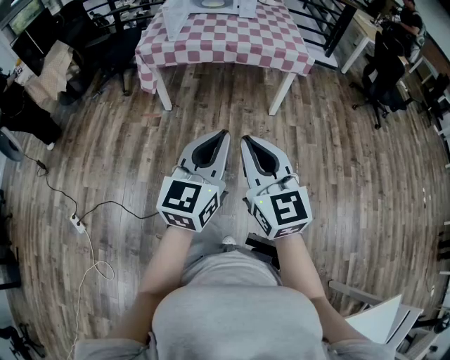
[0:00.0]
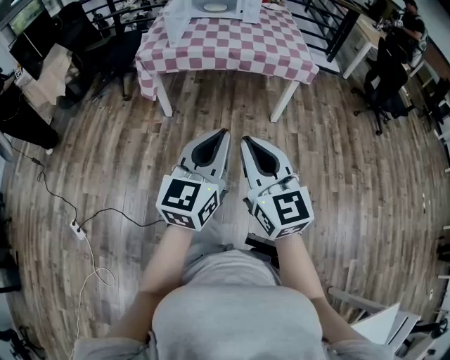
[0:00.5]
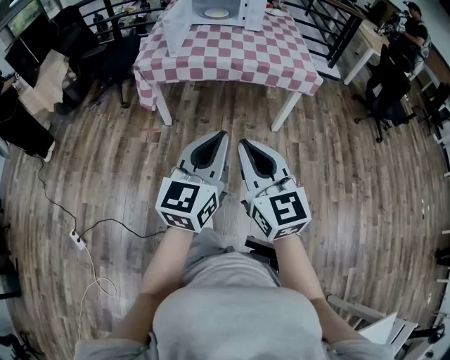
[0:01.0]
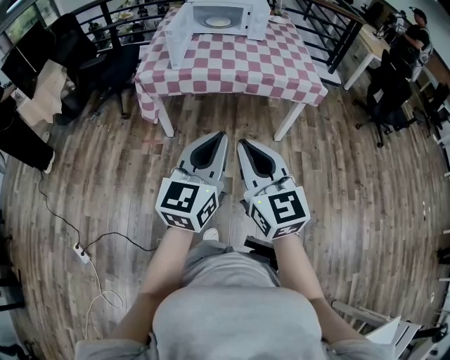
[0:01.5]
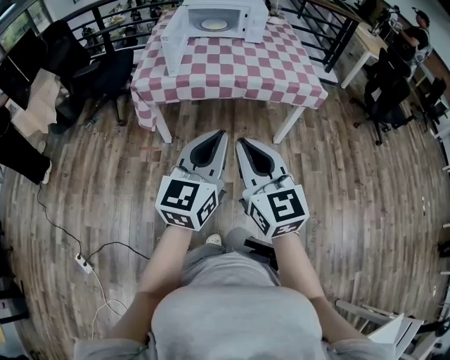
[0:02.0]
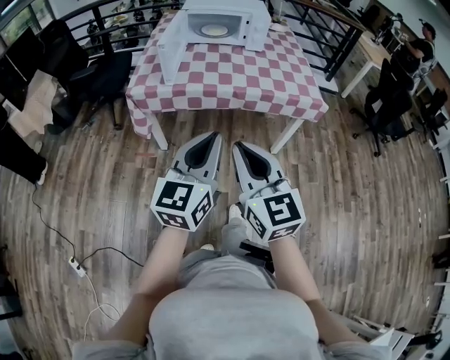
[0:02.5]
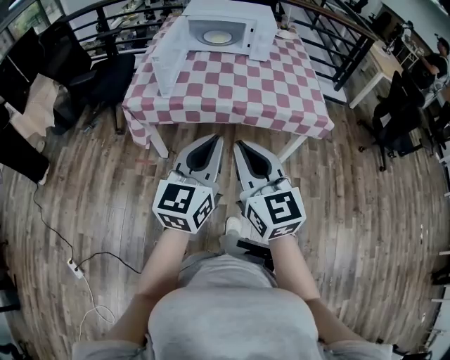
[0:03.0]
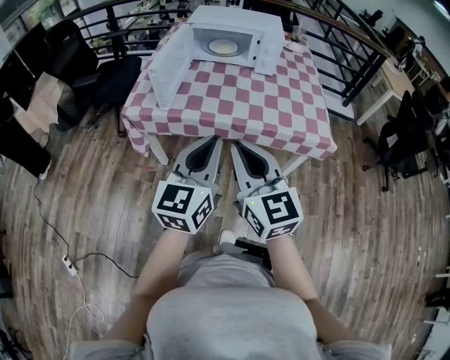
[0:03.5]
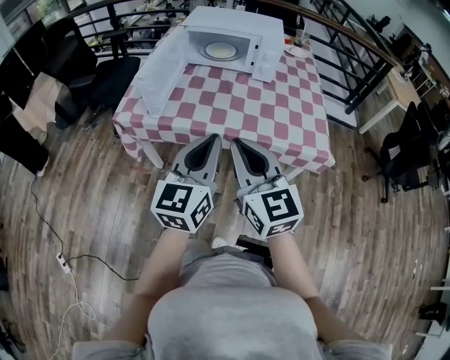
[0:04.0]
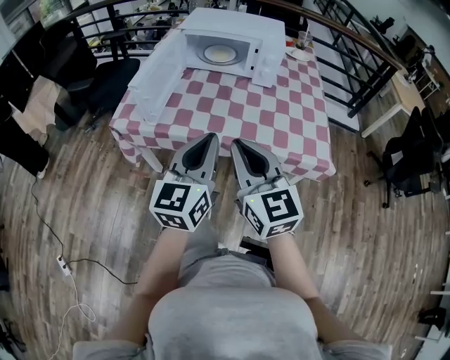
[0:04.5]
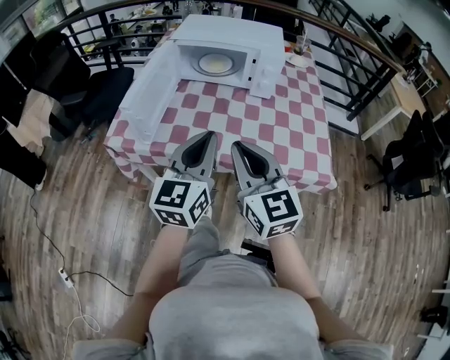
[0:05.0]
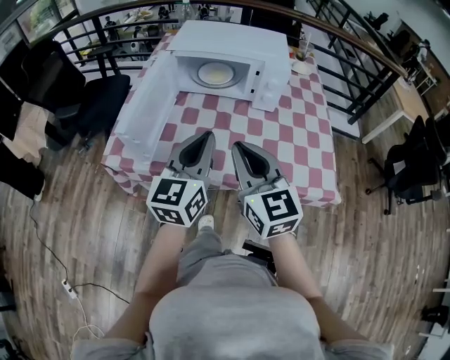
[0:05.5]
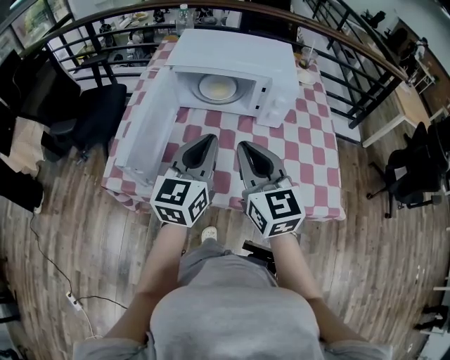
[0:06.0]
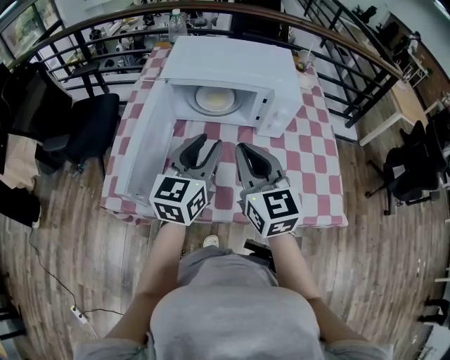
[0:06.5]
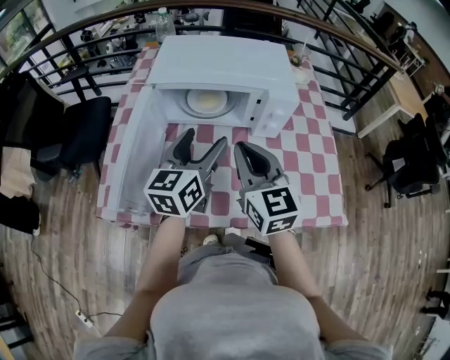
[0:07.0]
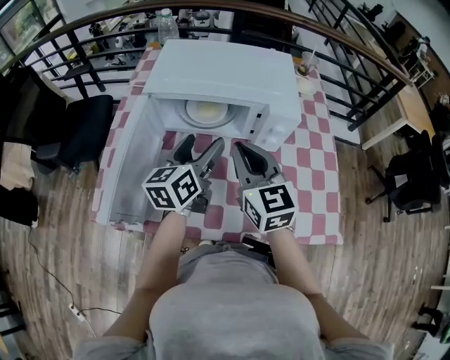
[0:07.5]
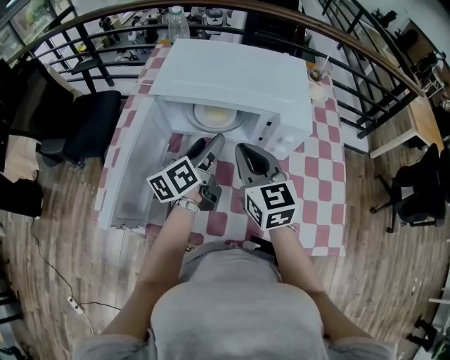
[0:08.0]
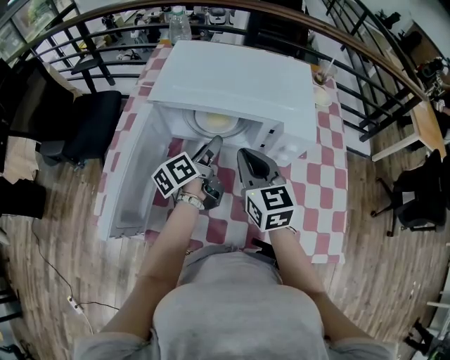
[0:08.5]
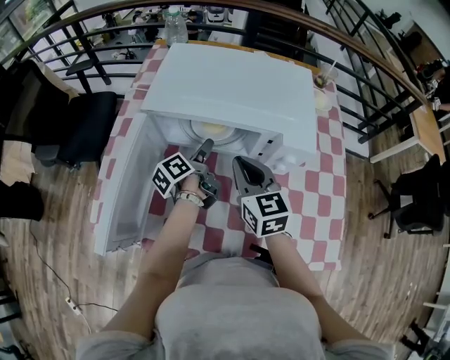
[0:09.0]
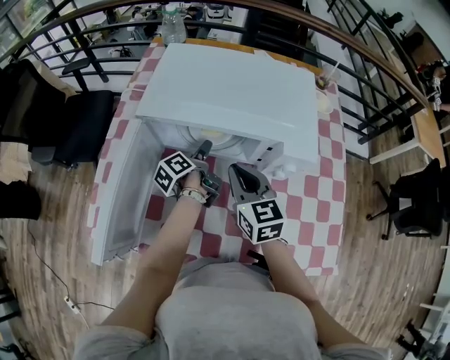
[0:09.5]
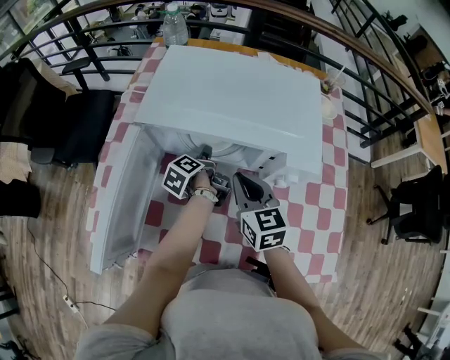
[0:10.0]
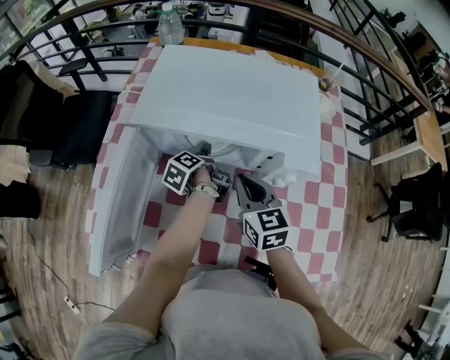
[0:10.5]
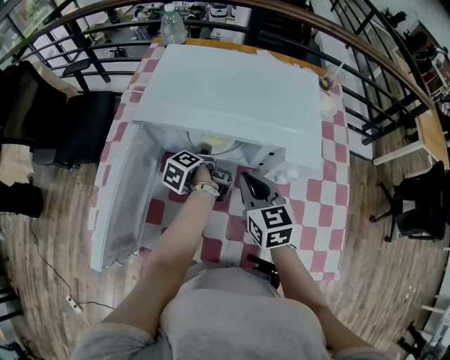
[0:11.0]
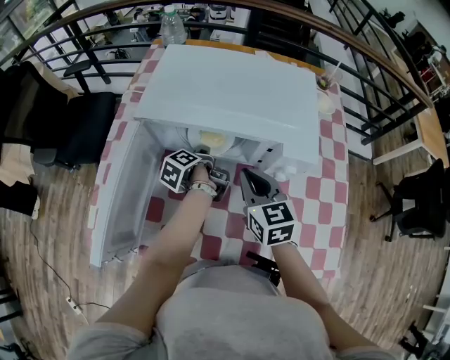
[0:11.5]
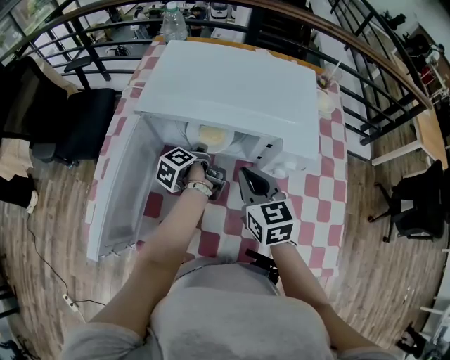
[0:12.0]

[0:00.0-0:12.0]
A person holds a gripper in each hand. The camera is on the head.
0:00.0 to 0:02.0: Both grippers move forward, some 25 cm.
0:02.0 to 0:04.0: Both grippers travel together forward, approximately 30 cm.
0:04.0 to 0:06.0: The grippers both shift forward by some 30 cm.
0:06.0 to 0:08.0: The right gripper moves forward, some 20 cm; the left gripper heads forward and downward, covering approximately 20 cm, twists some 40 degrees counterclockwise, seen from behind, and opens its fingers.
0:08.0 to 0:10.0: The right gripper goes some 10 cm downward and forward. Meanwhile the left gripper moves downward and forward, about 20 cm, and turns by some 50 degrees.
0:10.0 to 0:12.0: The left gripper closes up.

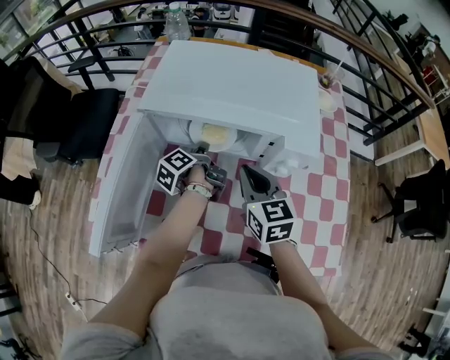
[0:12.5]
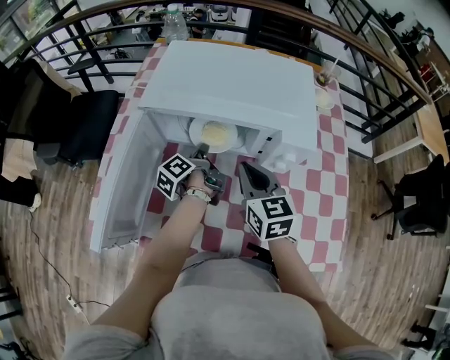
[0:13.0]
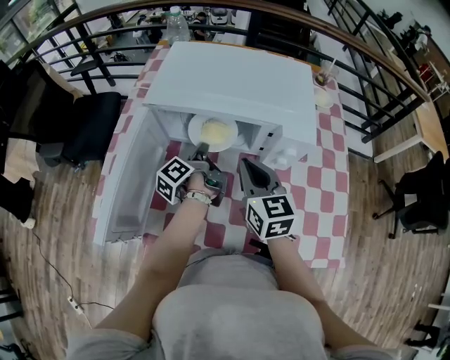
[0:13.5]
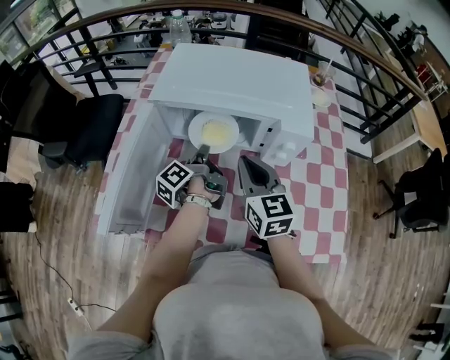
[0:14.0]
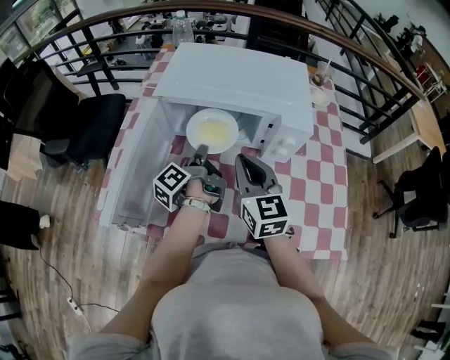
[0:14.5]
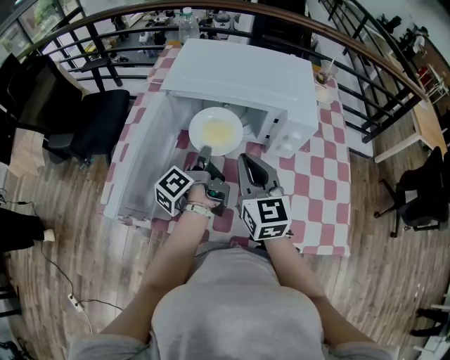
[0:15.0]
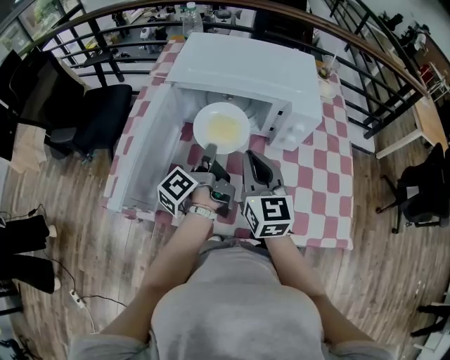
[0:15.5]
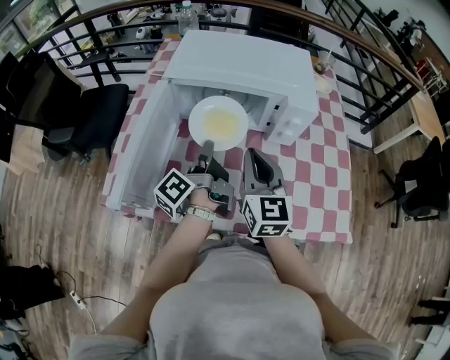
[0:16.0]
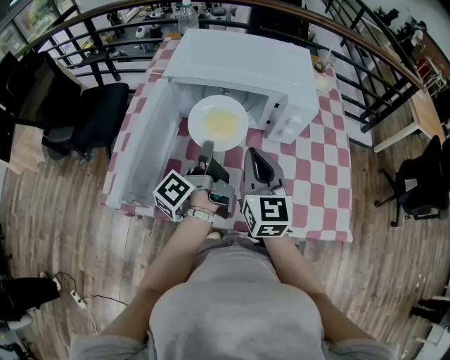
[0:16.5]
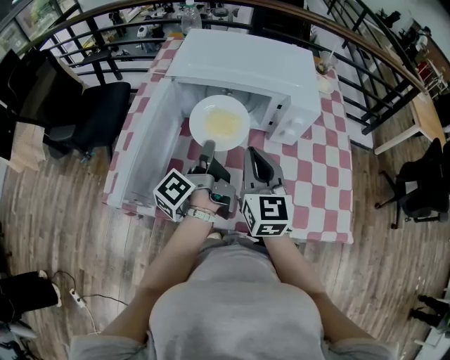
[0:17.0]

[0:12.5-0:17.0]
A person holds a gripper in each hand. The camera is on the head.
0:12.5 to 0:14.5: The right gripper moves upward and backward, some 5 cm. Meanwhile the left gripper heads backward and upward, covering roughly 10 cm.
0:14.5 to 0:17.0: The right gripper travels backward by roughly 5 cm, while the left gripper is displaced backward and upward by roughly 10 cm.

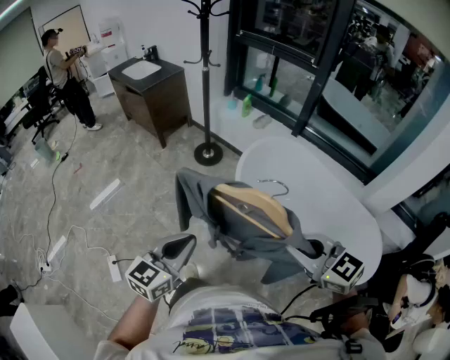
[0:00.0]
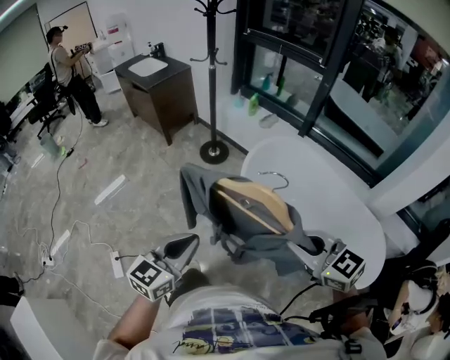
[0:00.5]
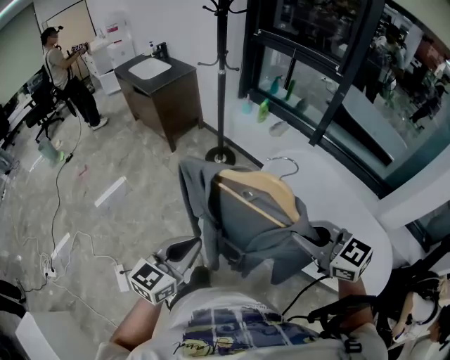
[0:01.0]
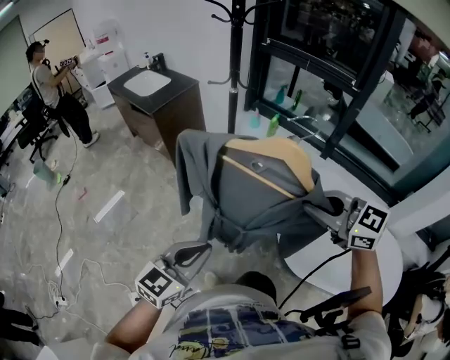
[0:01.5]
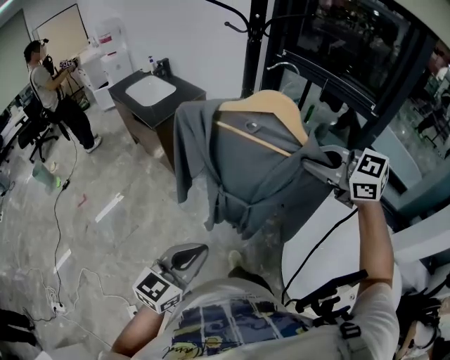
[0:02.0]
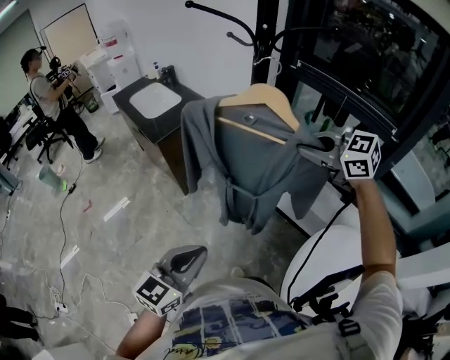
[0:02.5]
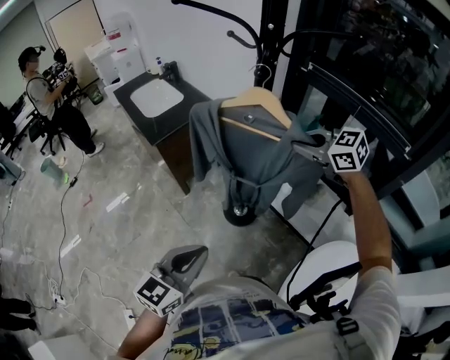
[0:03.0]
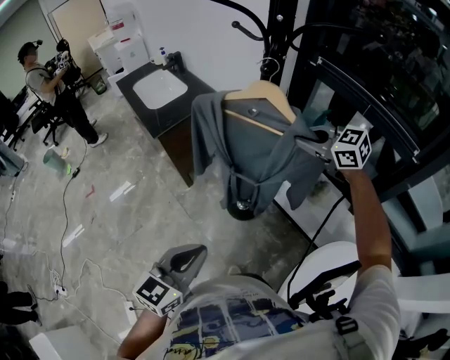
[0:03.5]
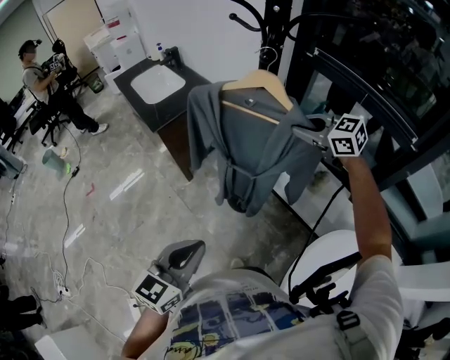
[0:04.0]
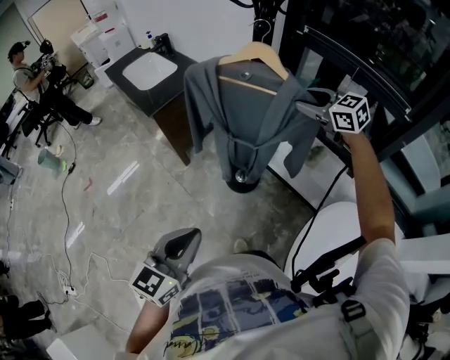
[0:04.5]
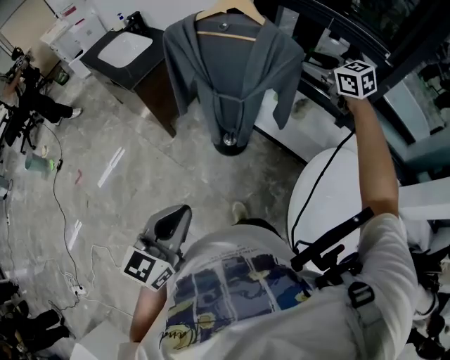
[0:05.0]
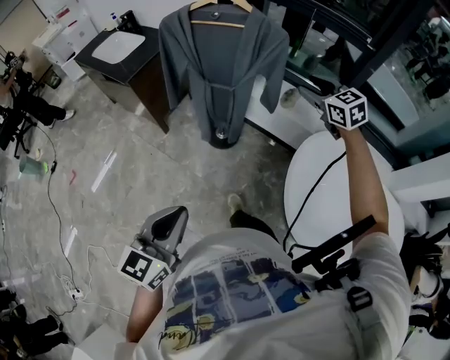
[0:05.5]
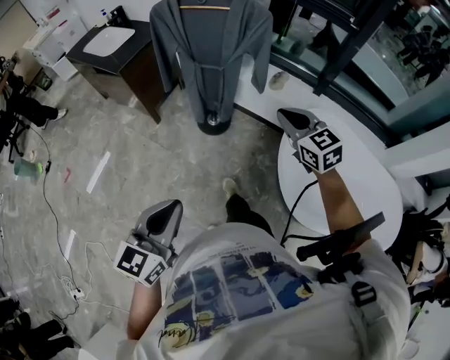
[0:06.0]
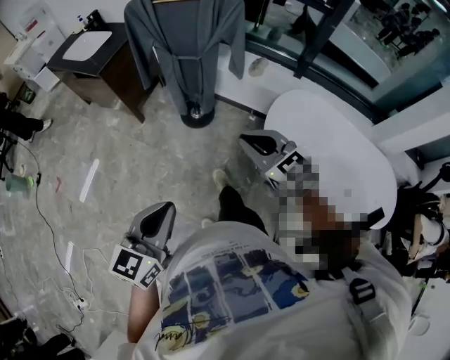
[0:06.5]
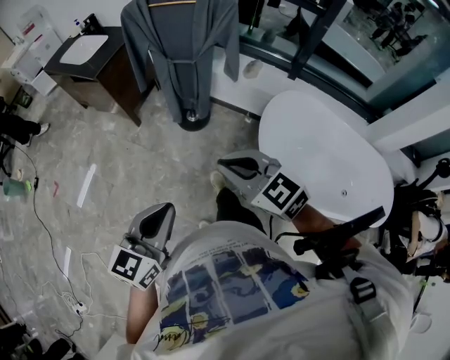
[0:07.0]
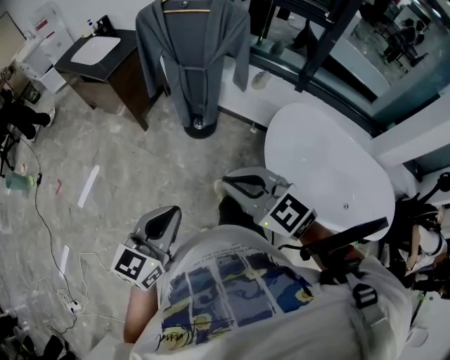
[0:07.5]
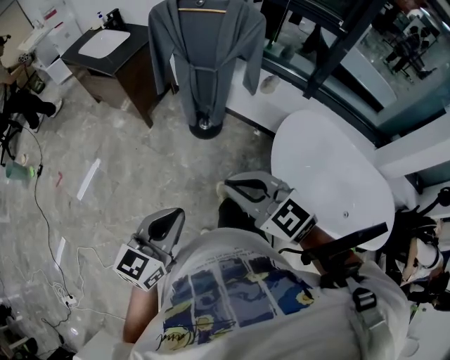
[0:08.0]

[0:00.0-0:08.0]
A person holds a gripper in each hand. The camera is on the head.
0:00.0 to 0:02.0: Both grippers are carried forward, about 50 cm.
0:02.0 to 0:04.0: The left gripper shifts roughly 20 cm forward; the right gripper travels forward by approximately 35 cm.
0:04.0 to 0:06.0: The right gripper shifts by about 40 cm, rotates about 40 degrees, and opens and closes again; the left gripper ends up about 25 cm from where it was.
0:06.0 to 0:08.0: The right gripper heads backward and to the left, covering about 25 cm, and rotates approximately 20 degrees.

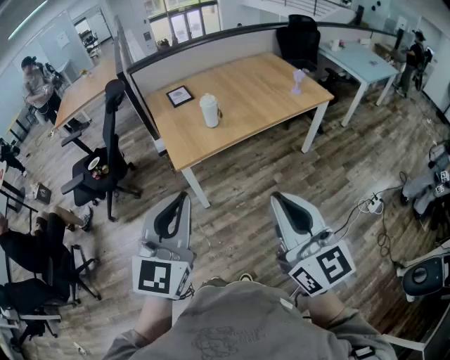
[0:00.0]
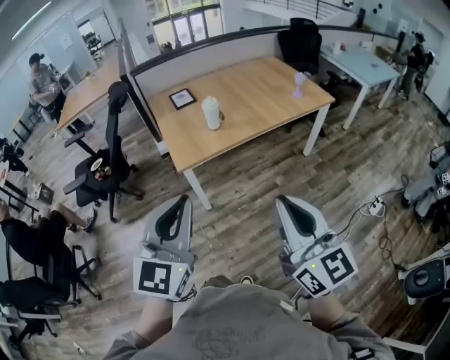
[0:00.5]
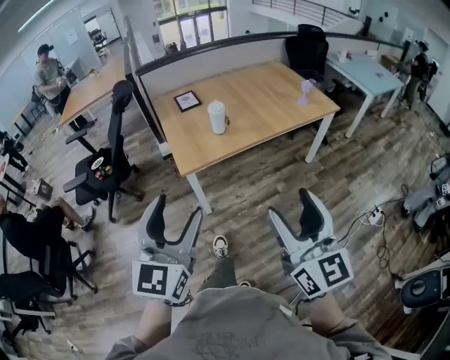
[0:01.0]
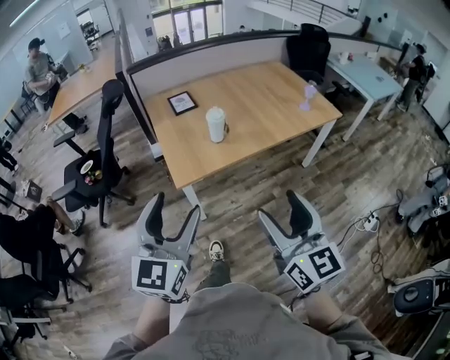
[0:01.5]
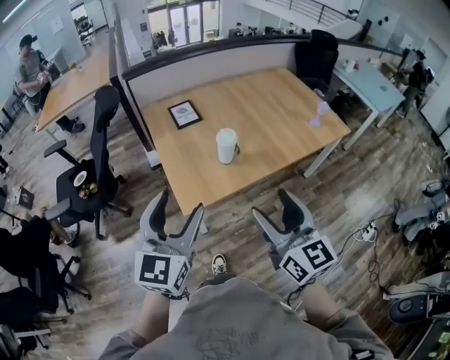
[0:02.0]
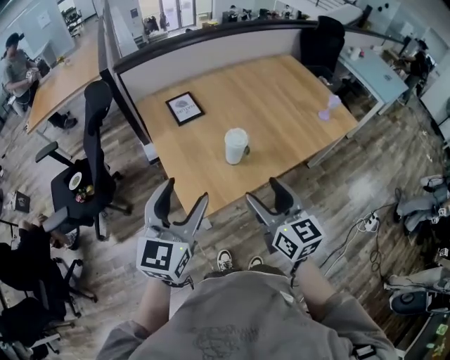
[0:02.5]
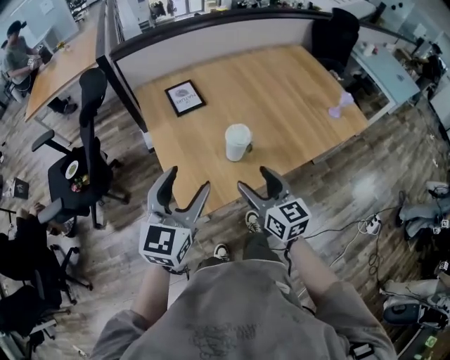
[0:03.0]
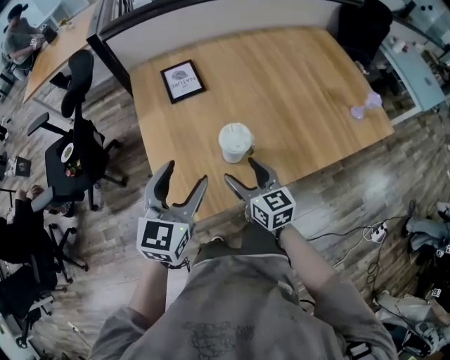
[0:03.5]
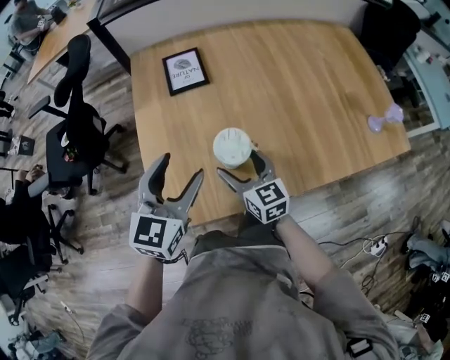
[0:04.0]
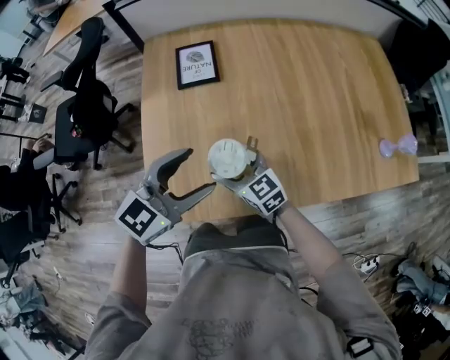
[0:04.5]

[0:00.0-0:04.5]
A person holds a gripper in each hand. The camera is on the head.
0:00.0 to 0:02.0: Both grippers travel together forward, about 30 cm. The left gripper opens its fingers. Meanwhile the right gripper opens up.
0:02.0 to 0:04.5: The right gripper shifts some 50 cm forward and downward, and changes its angle by roughly 50 degrees. The left gripper moves forward, downward and to the right, approximately 40 cm, and rotates roughly 20 degrees.
